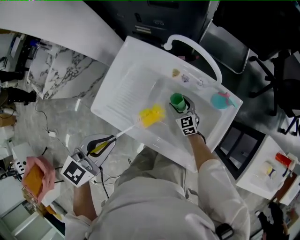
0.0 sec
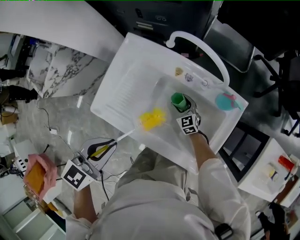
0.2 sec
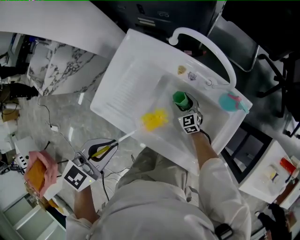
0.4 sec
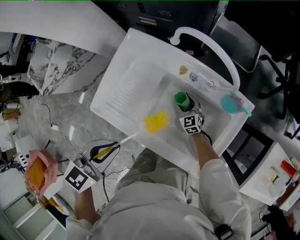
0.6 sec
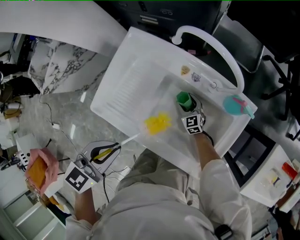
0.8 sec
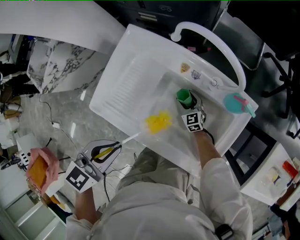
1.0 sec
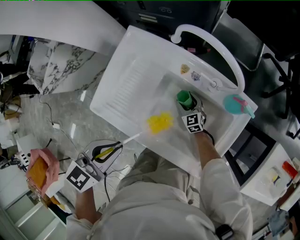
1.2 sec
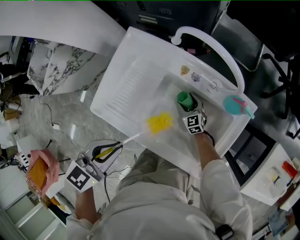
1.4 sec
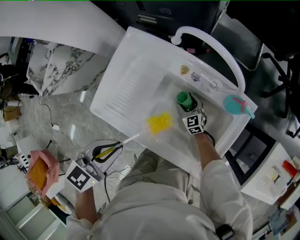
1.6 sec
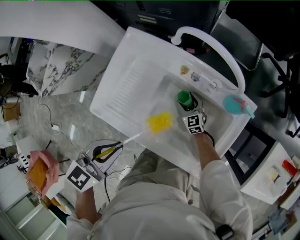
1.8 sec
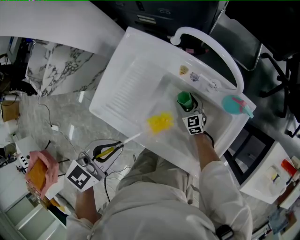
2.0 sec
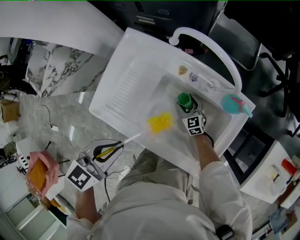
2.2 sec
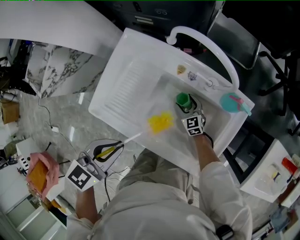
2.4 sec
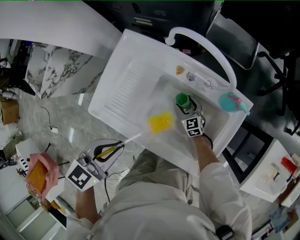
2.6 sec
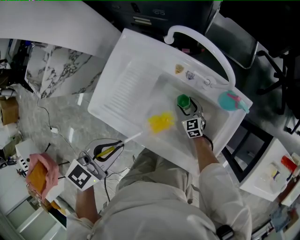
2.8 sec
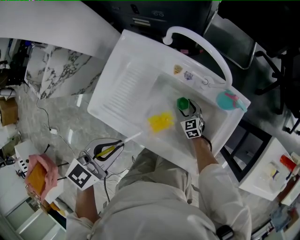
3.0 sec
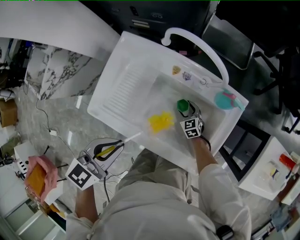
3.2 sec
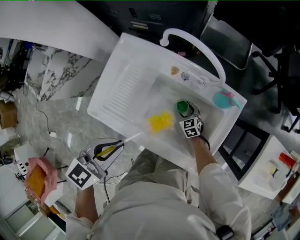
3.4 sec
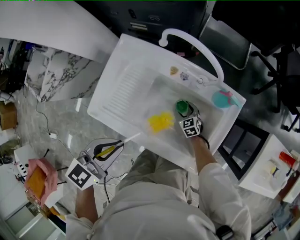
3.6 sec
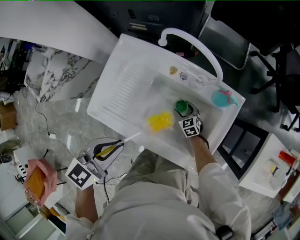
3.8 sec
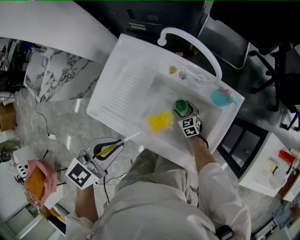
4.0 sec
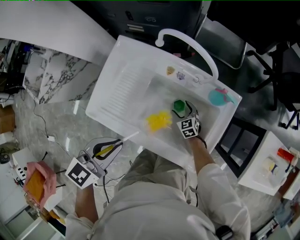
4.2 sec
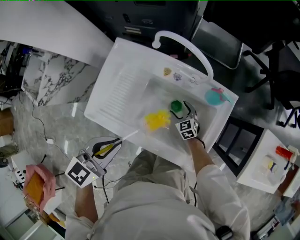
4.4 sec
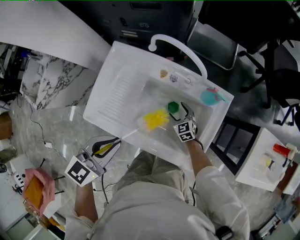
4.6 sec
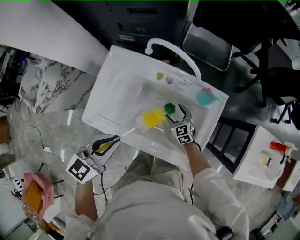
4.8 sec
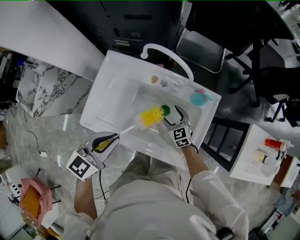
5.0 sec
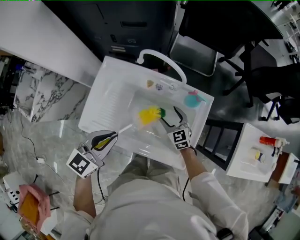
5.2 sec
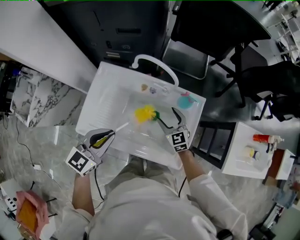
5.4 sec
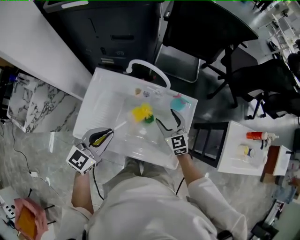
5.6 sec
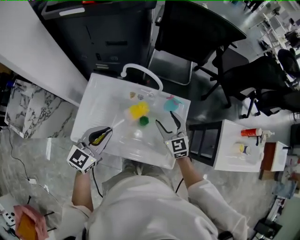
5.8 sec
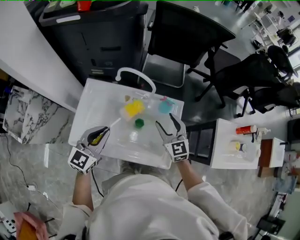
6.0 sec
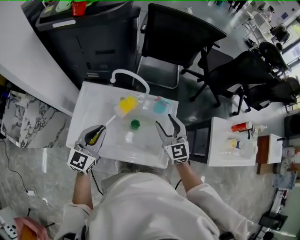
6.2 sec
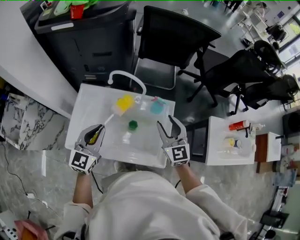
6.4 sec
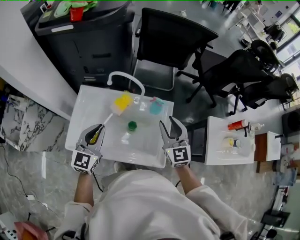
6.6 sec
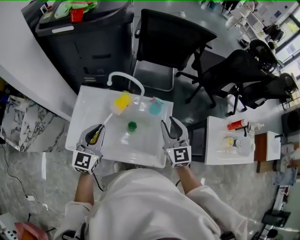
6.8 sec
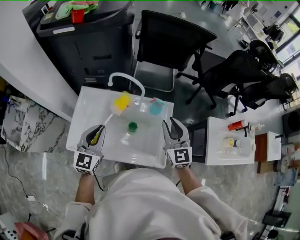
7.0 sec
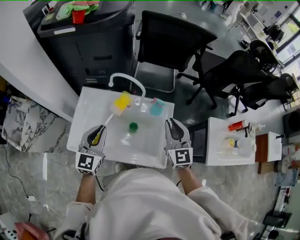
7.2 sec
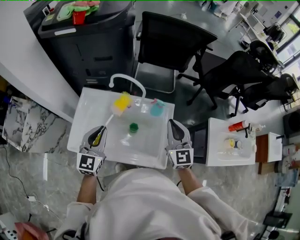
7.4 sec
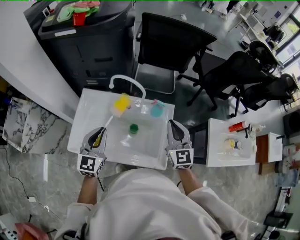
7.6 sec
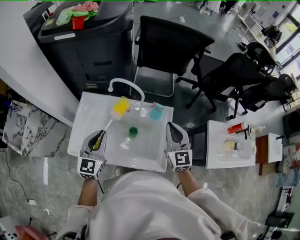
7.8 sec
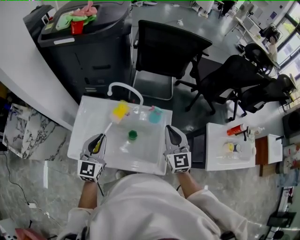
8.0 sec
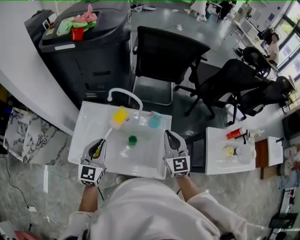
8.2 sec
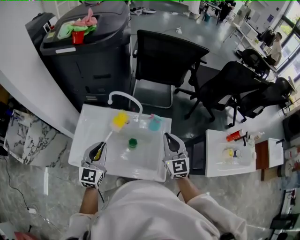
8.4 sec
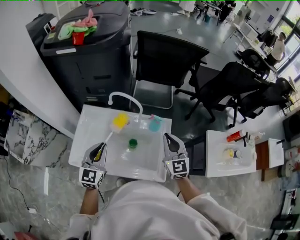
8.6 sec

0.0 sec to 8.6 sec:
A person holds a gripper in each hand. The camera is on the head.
0.0 sec to 1.4 sec: The left gripper moves downward, approximately 5 cm, while the right gripper moves downward, some 10 cm.
1.4 sec to 2.8 sec: There are only small adjustments of the grippers.
2.8 sec to 4.4 sec: The grippers stay close to where they were, moving slightly.
4.4 sec to 5.8 sec: The left gripper goes about 10 cm upward and forward; the right gripper travels upward by about 35 cm, and rotates roughly 30 degrees.
5.8 sec to 7.2 sec: The right gripper moves upward and to the right, some 15 cm, and closes its fingers.
7.2 sec to 8.6 sec: Both grippers stay about where they are.

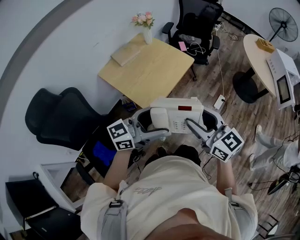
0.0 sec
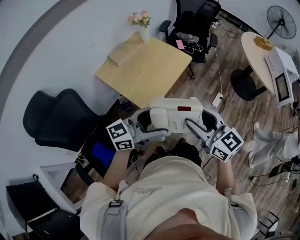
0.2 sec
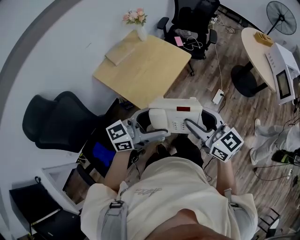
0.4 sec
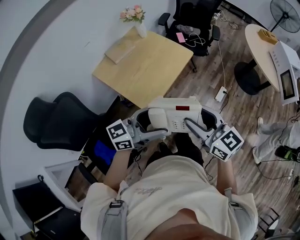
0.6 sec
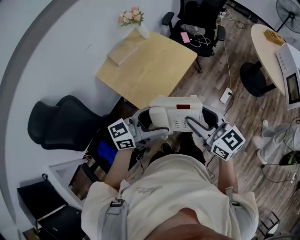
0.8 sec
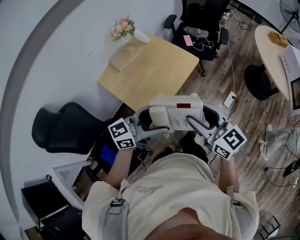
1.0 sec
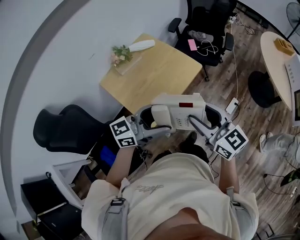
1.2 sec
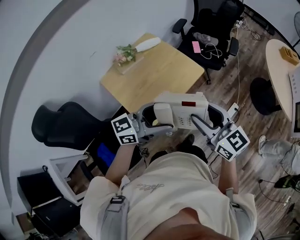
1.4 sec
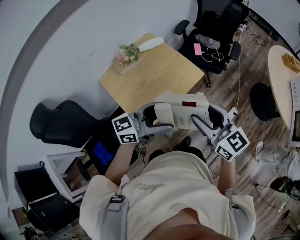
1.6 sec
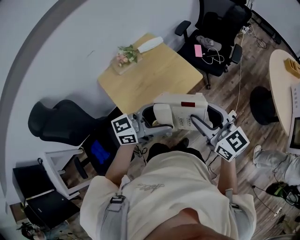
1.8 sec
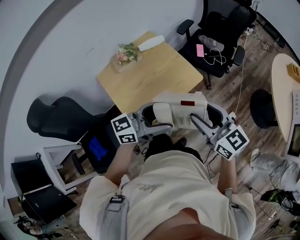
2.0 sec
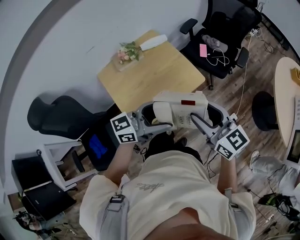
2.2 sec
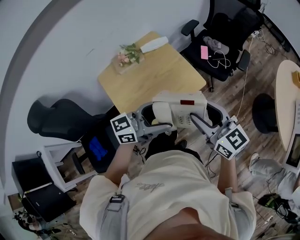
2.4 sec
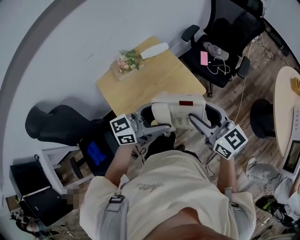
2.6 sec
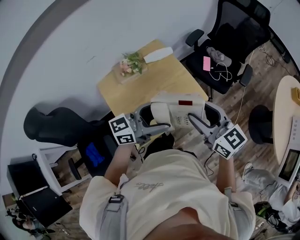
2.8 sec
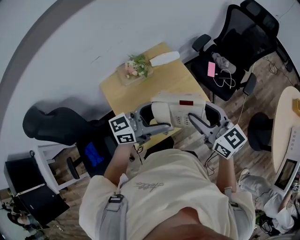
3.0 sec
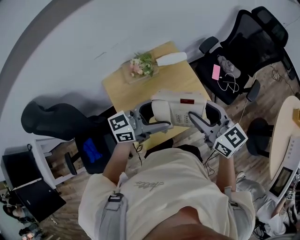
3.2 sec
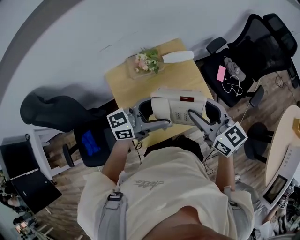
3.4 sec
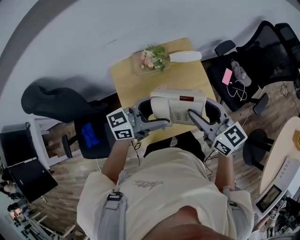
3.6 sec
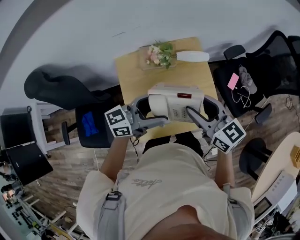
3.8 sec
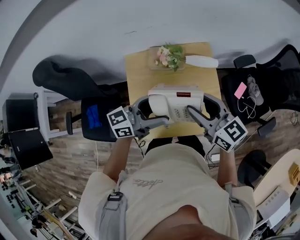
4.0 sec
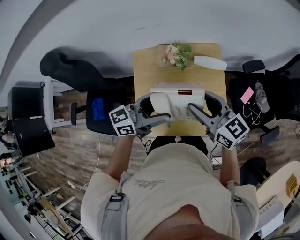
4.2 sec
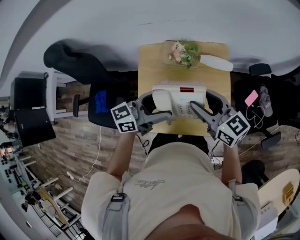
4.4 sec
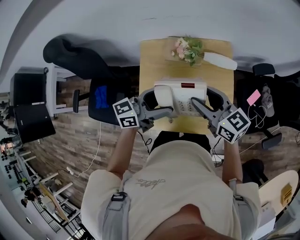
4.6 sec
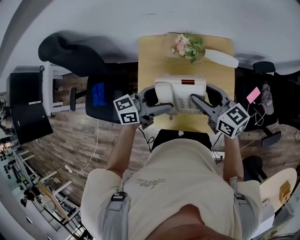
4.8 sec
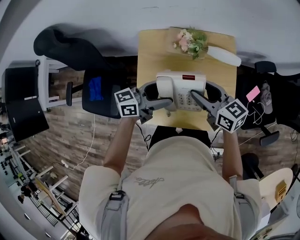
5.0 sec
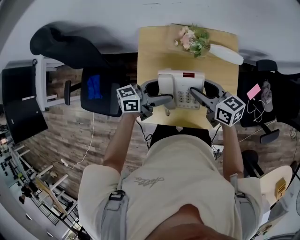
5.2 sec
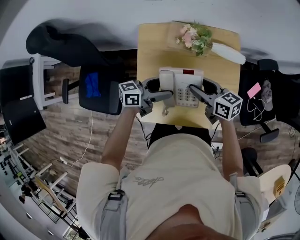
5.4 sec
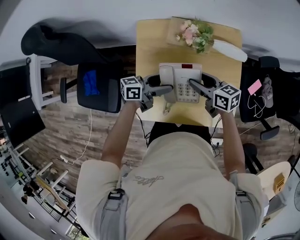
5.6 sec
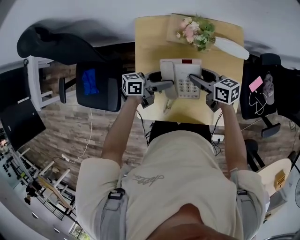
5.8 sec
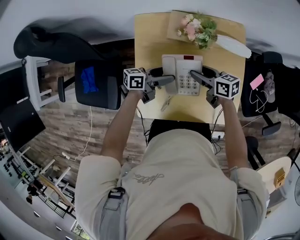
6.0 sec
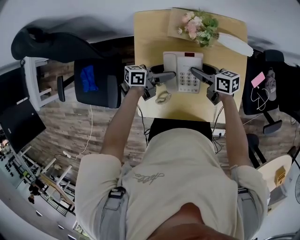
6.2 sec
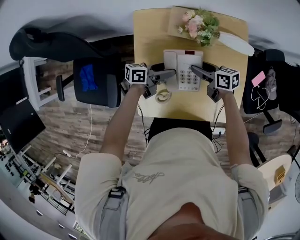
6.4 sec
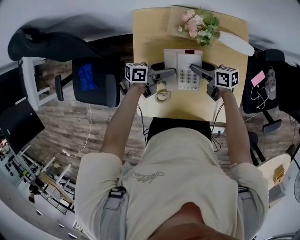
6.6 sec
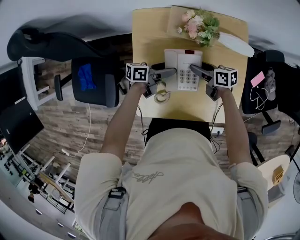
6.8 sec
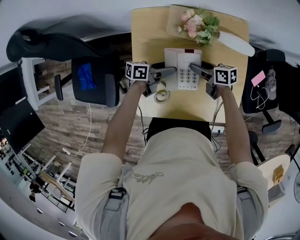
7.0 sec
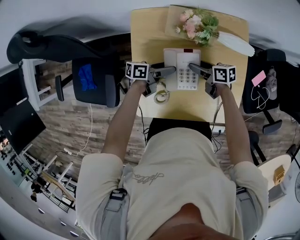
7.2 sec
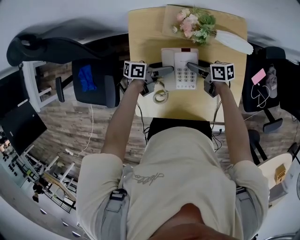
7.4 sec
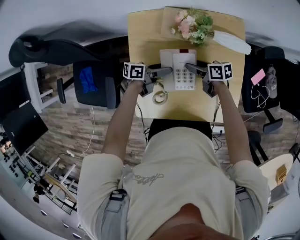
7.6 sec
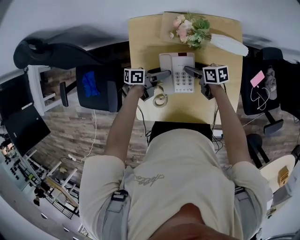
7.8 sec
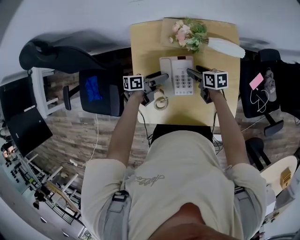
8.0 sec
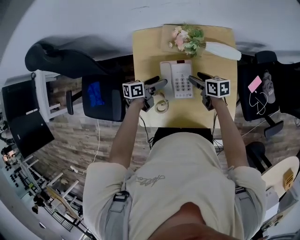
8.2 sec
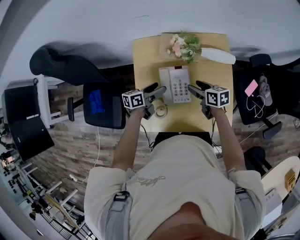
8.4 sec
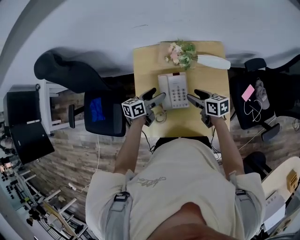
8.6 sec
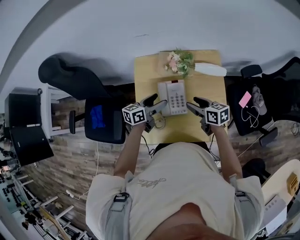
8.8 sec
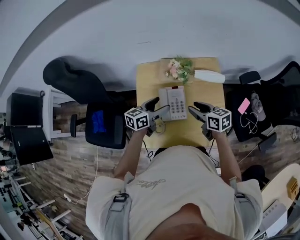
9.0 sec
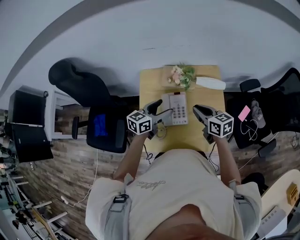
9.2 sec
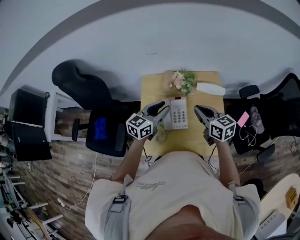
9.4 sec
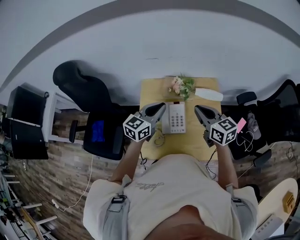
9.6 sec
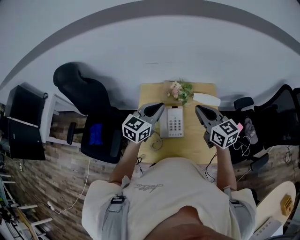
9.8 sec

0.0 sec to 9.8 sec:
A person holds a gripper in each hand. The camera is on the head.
0.0 sec to 1.4 sec: The two grippers go approximately 25 cm forward.
1.4 sec to 2.8 sec: Both grippers travel together forward, about 20 cm.
2.8 sec to 4.2 sec: The right gripper ends up roughly 20 cm from where it was, and turns by some 40 degrees; the left gripper ends up roughly 15 cm from where it was, and rotates about 40 degrees.
4.2 sec to 5.6 sec: The two grippers go some 20 cm downward. The right gripper rotates some 30 degrees. The left gripper changes its angle by roughly 30 degrees.
5.6 sec to 7.0 sec: The two grippers go about 10 cm downward. The right gripper changes its angle by roughly 20 degrees.
7.0 sec to 8.4 sec: The grippers both shift upward by roughly 5 cm.
8.4 sec to 9.8 sec: The grippers both shift upward by some 30 cm. The left gripper rotates around the line of its fingers by approximately 50 degrees, clockwise from behind, and closes. The right gripper changes its angle by approximately 40 degrees, and closes its fingers.

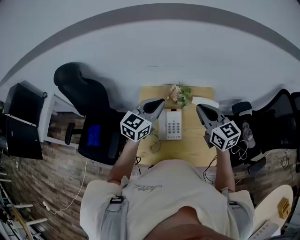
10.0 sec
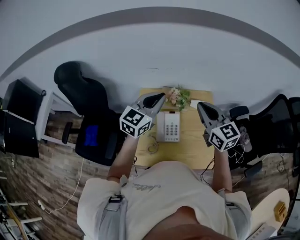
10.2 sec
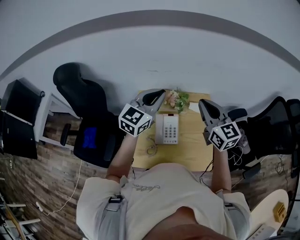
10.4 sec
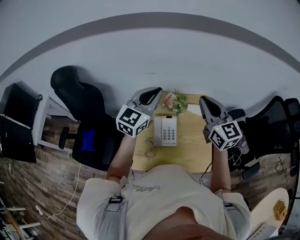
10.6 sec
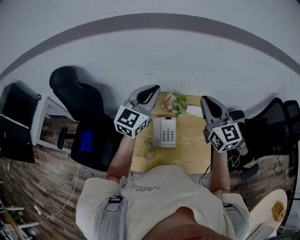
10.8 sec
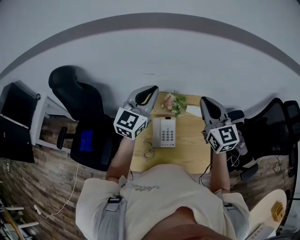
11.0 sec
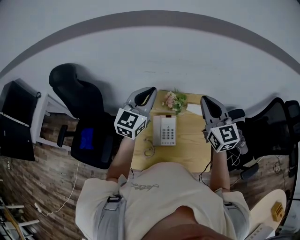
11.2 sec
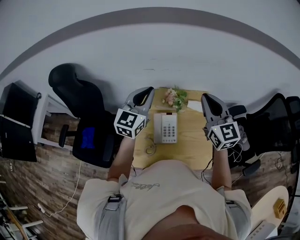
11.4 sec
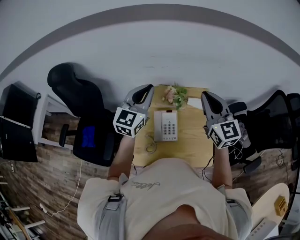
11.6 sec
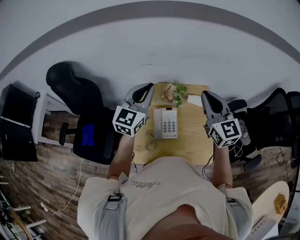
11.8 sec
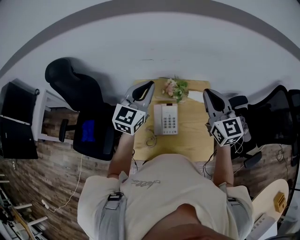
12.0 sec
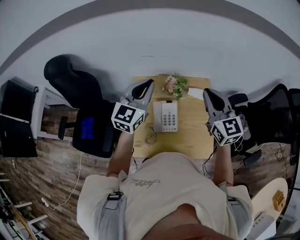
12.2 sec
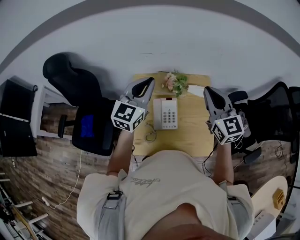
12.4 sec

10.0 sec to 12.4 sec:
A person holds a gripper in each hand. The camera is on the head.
10.0 sec to 11.2 sec: The two grippers go some 5 cm upward.
11.2 sec to 12.4 sec: The grippers make only small movements.

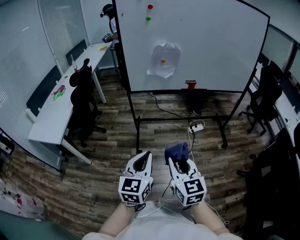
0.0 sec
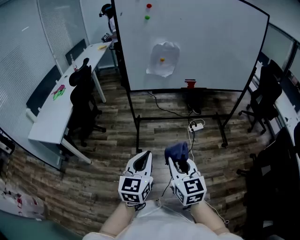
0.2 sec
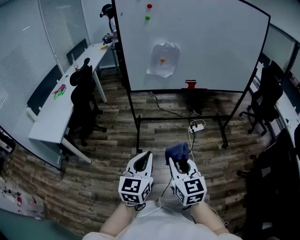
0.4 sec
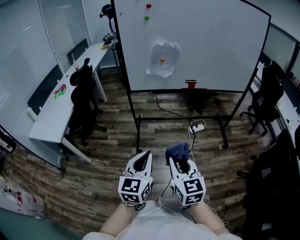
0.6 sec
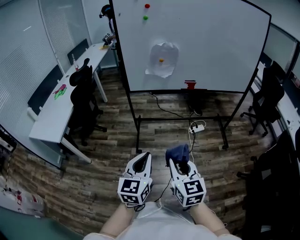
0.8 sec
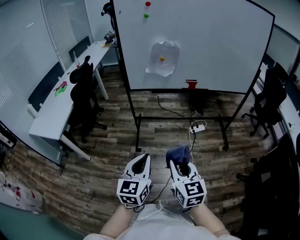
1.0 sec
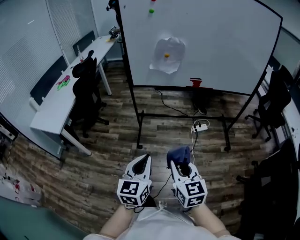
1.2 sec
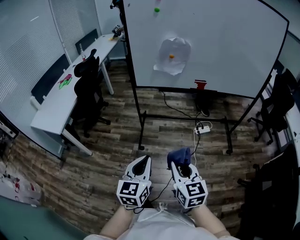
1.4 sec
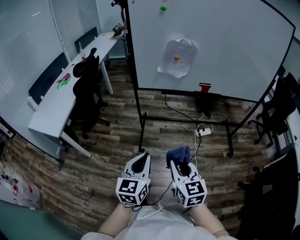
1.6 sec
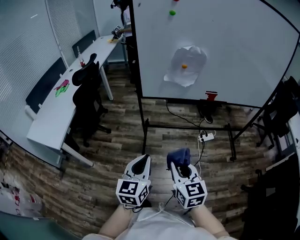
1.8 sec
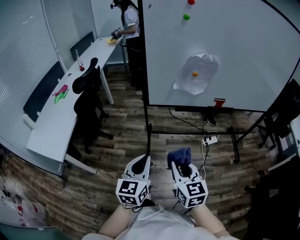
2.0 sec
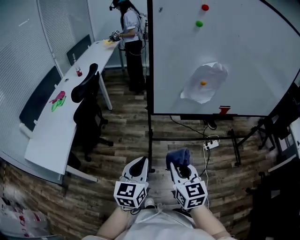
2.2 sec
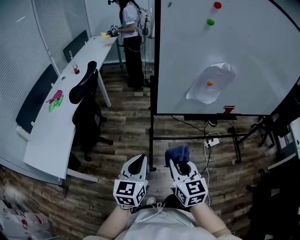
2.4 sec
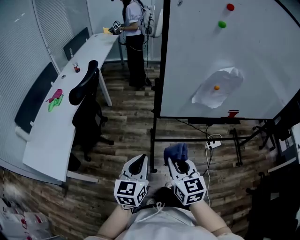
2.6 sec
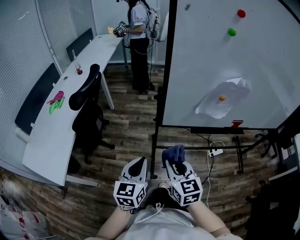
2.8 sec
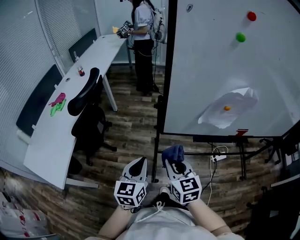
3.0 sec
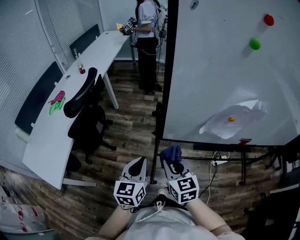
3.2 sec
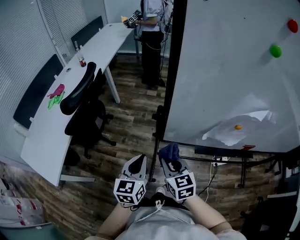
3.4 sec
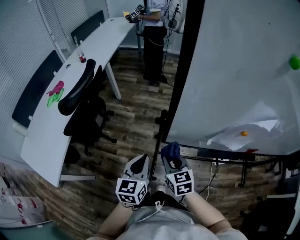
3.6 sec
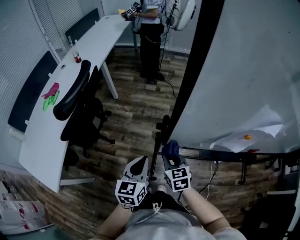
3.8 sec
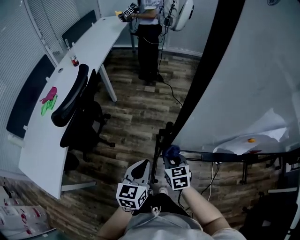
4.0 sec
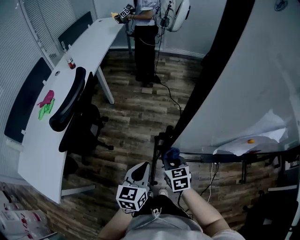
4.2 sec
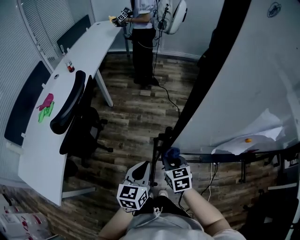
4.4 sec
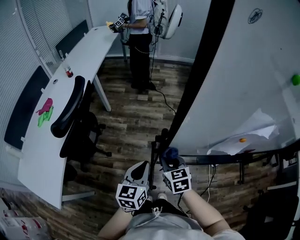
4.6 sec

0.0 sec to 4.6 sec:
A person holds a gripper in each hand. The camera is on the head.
0.0 sec to 1.6 sec: The two grippers go approximately 10 cm forward and downward.
1.6 sec to 3.0 sec: Both grippers are carried forward and to the left, roughly 40 cm.
3.0 sec to 4.6 sec: The left gripper travels forward by roughly 15 cm. Meanwhile the right gripper shifts about 20 cm forward and downward.
